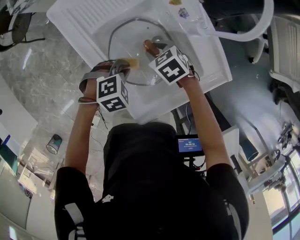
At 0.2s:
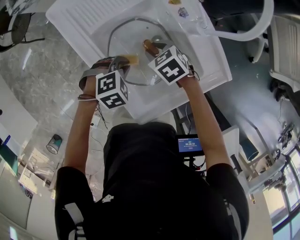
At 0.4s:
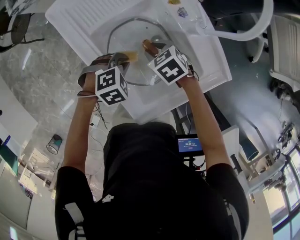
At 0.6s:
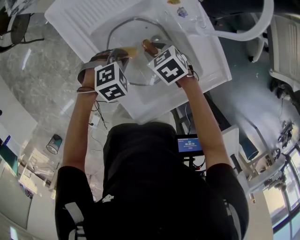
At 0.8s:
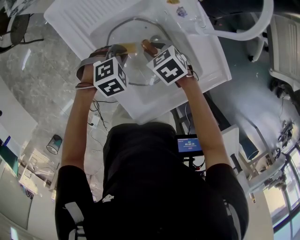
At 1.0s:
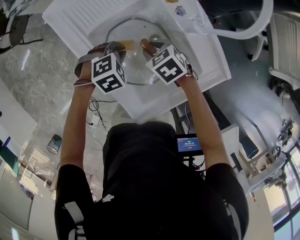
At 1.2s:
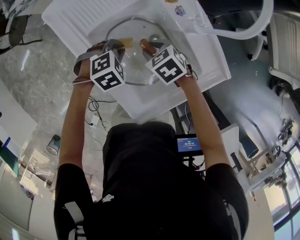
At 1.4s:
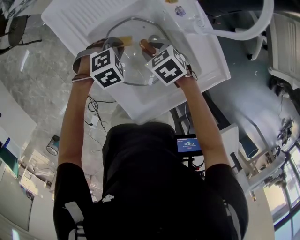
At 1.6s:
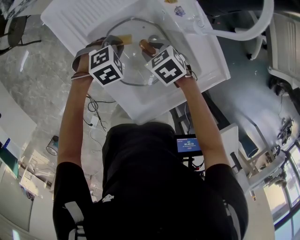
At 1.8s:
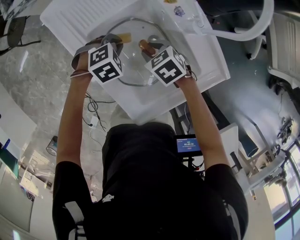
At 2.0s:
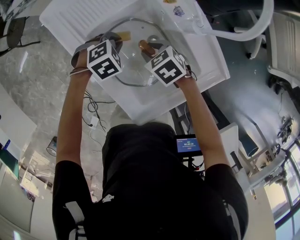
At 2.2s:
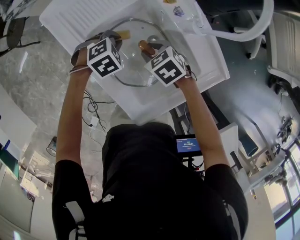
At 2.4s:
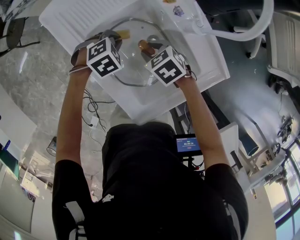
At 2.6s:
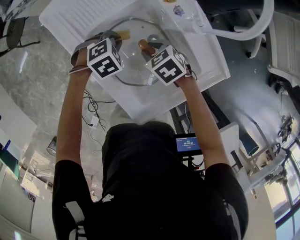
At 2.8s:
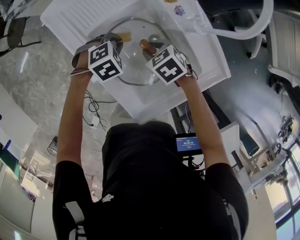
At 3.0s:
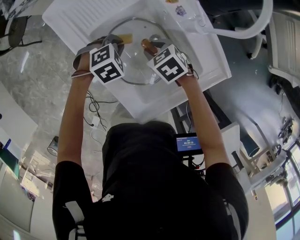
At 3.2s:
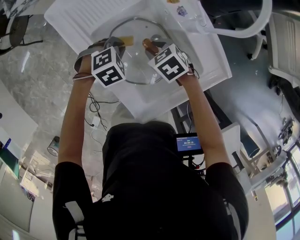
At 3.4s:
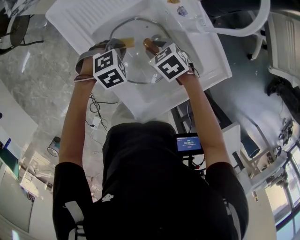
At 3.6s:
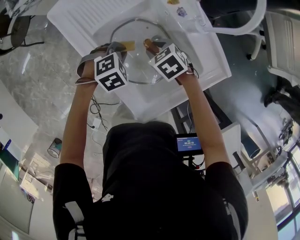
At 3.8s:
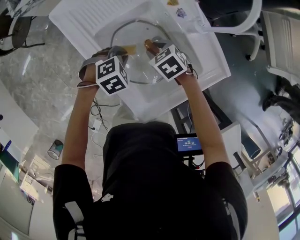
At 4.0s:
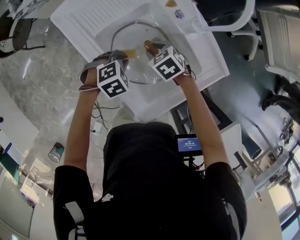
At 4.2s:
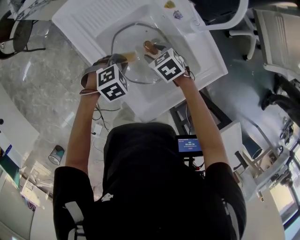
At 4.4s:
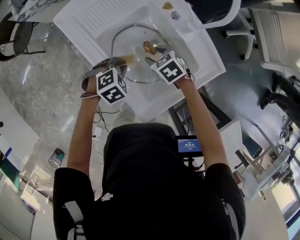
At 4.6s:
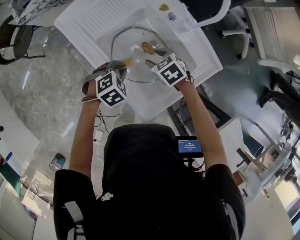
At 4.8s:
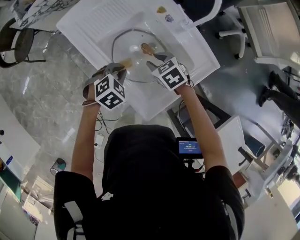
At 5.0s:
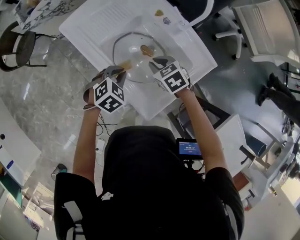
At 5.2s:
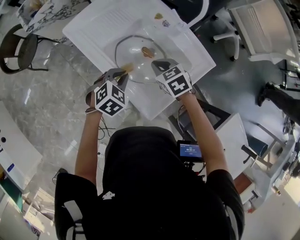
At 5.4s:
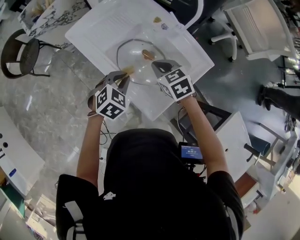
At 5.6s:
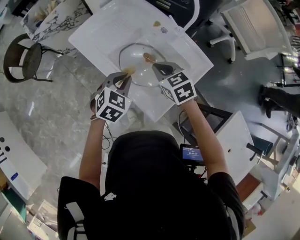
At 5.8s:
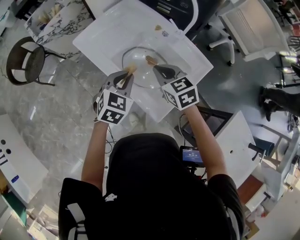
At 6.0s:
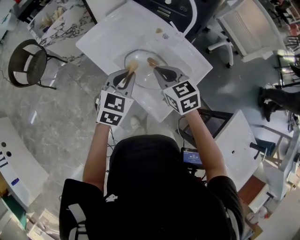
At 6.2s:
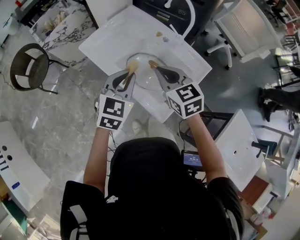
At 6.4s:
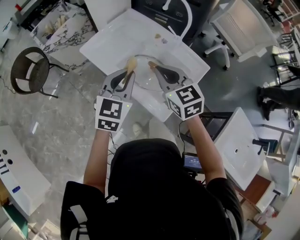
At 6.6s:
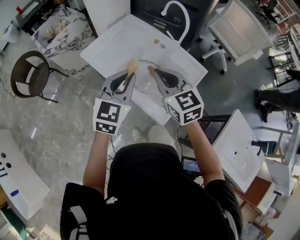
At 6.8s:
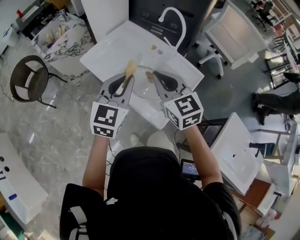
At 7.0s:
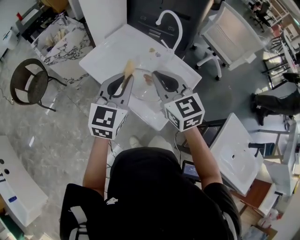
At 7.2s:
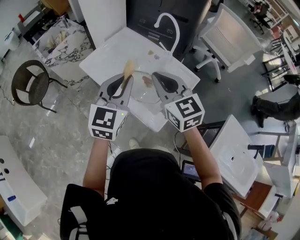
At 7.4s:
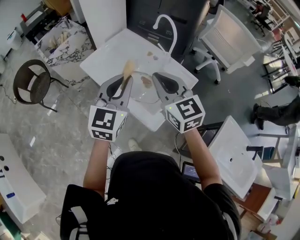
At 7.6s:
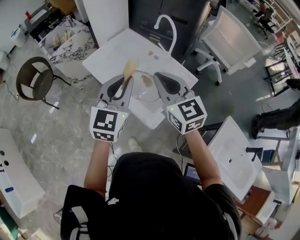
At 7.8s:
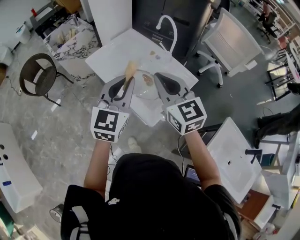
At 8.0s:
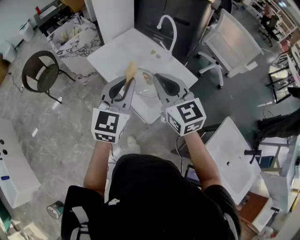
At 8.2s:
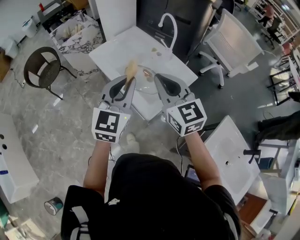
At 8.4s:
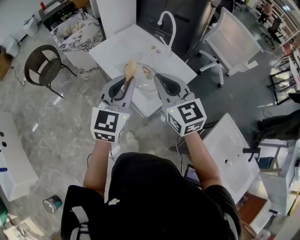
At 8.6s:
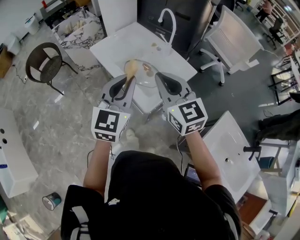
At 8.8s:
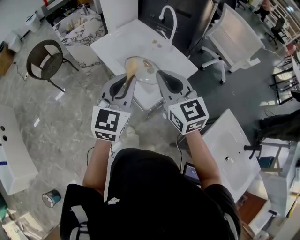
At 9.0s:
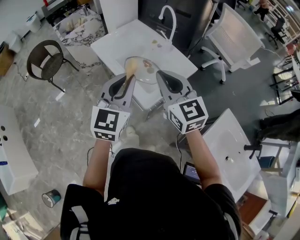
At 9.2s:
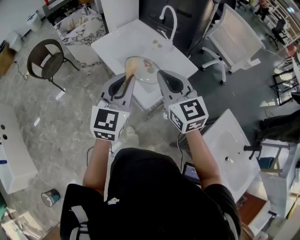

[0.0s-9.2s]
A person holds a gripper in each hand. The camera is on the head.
0.0s to 1.6s: The left gripper shifts by some 10 cm.
1.6s to 3.0s: The grippers move only a little.
3.0s to 4.6s: The left gripper shifts some 10 cm backward.
4.6s to 6.2s: The grippers both shift upward by some 25 cm. The right gripper angles its fingers upward, by roughly 30 degrees, and closes up, while the left gripper tilts its fingers about 40 degrees upward.
6.2s to 7.6s: Both grippers move upward and backward, roughly 15 cm. The left gripper turns by some 20 degrees.
7.6s to 9.2s: The grippers both shift backward by roughly 15 cm.

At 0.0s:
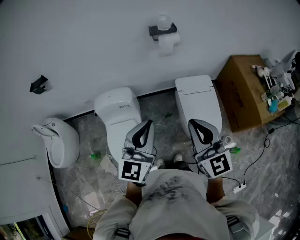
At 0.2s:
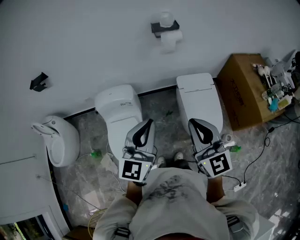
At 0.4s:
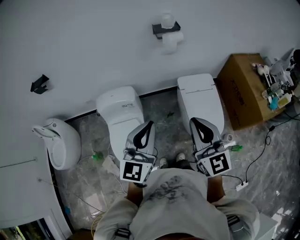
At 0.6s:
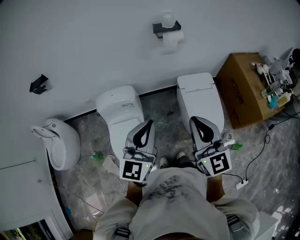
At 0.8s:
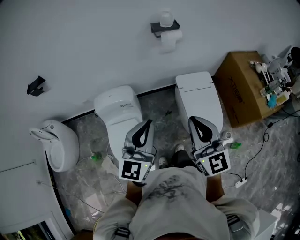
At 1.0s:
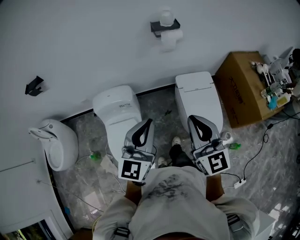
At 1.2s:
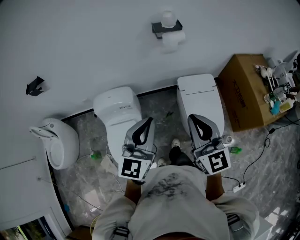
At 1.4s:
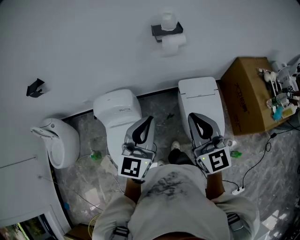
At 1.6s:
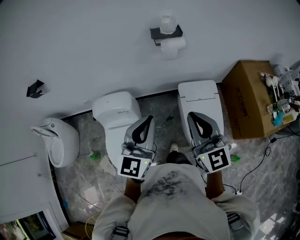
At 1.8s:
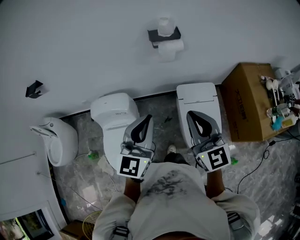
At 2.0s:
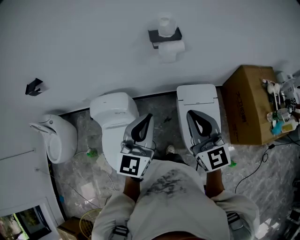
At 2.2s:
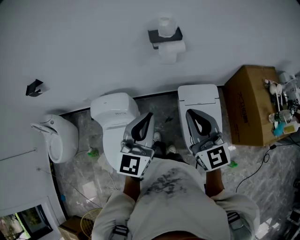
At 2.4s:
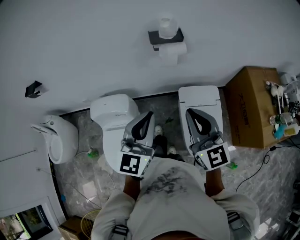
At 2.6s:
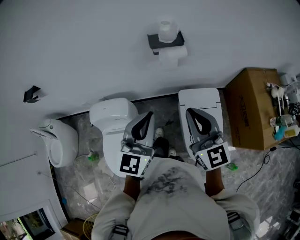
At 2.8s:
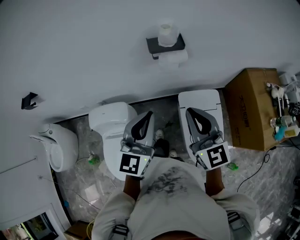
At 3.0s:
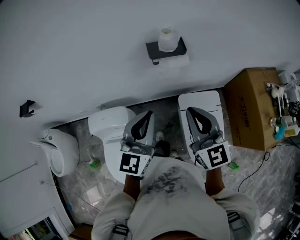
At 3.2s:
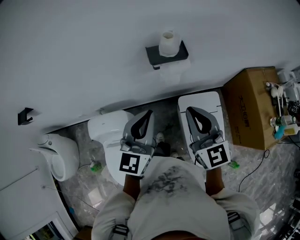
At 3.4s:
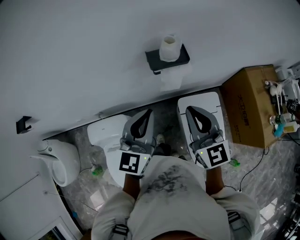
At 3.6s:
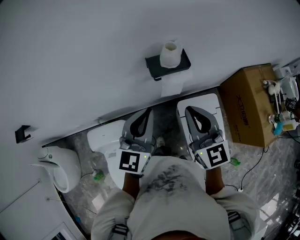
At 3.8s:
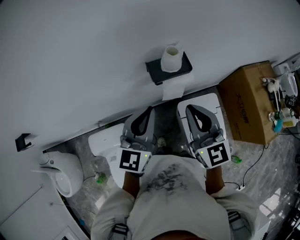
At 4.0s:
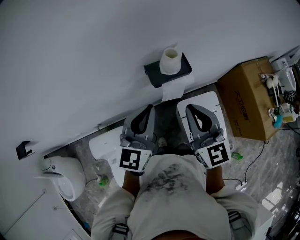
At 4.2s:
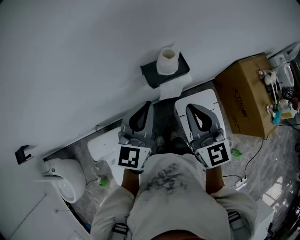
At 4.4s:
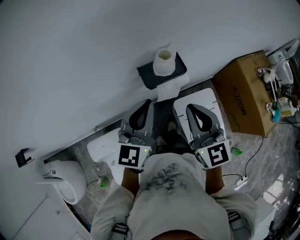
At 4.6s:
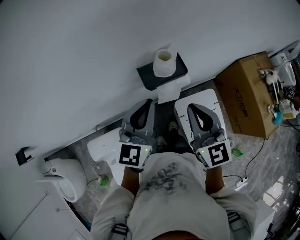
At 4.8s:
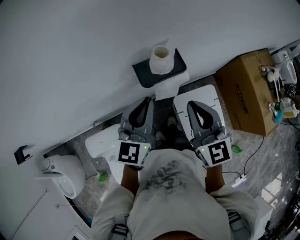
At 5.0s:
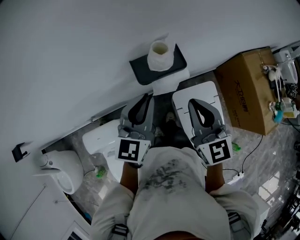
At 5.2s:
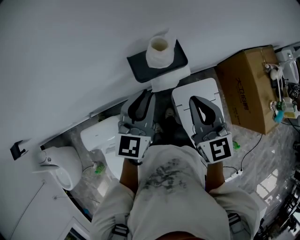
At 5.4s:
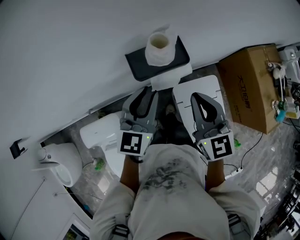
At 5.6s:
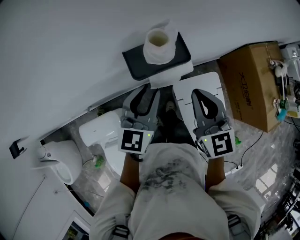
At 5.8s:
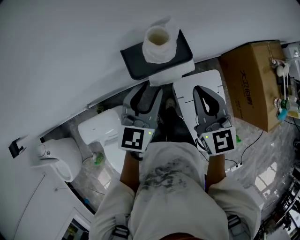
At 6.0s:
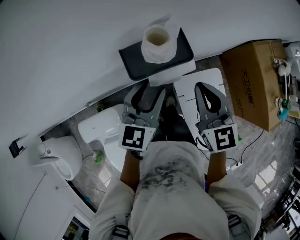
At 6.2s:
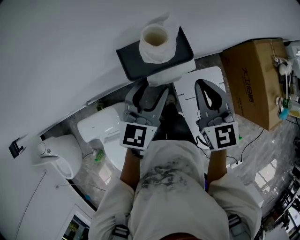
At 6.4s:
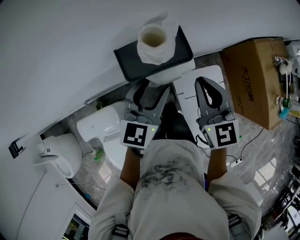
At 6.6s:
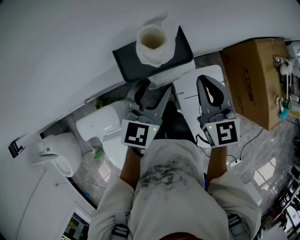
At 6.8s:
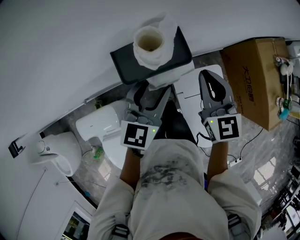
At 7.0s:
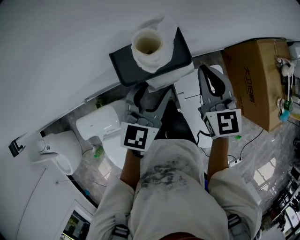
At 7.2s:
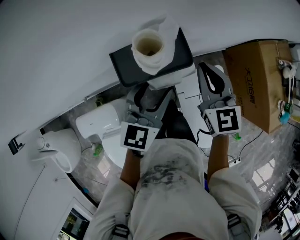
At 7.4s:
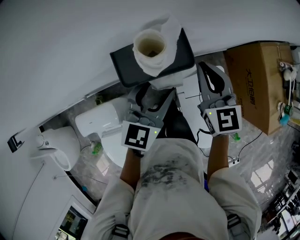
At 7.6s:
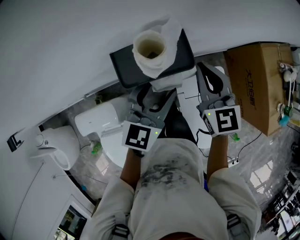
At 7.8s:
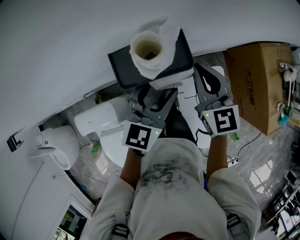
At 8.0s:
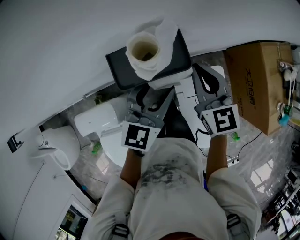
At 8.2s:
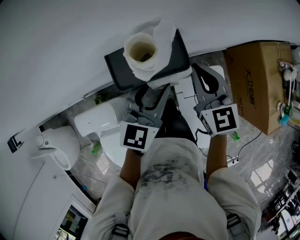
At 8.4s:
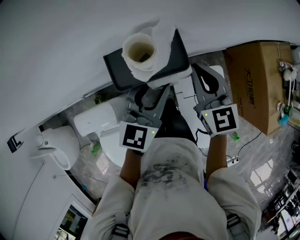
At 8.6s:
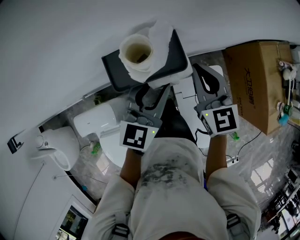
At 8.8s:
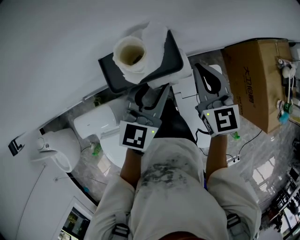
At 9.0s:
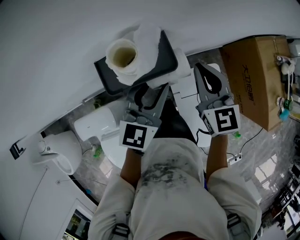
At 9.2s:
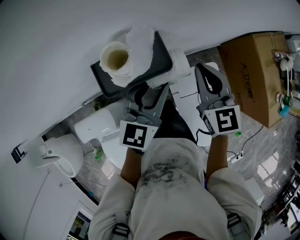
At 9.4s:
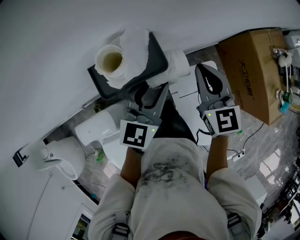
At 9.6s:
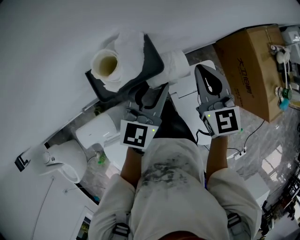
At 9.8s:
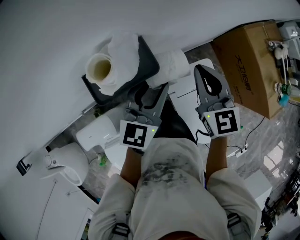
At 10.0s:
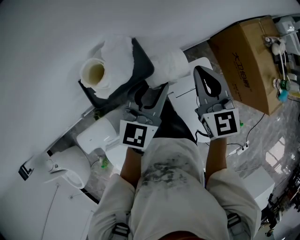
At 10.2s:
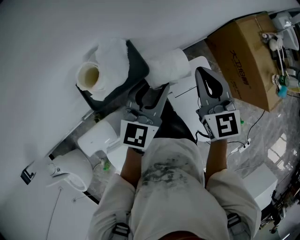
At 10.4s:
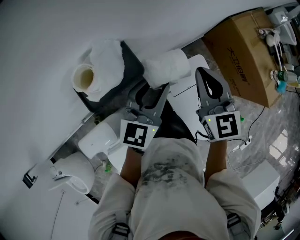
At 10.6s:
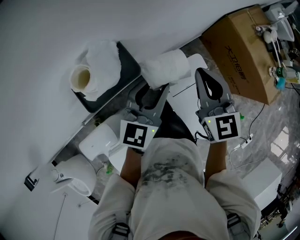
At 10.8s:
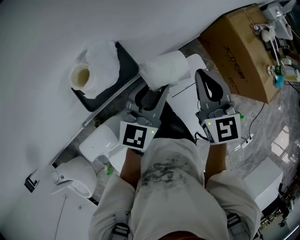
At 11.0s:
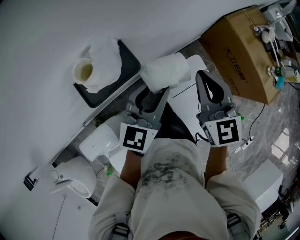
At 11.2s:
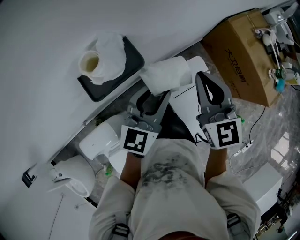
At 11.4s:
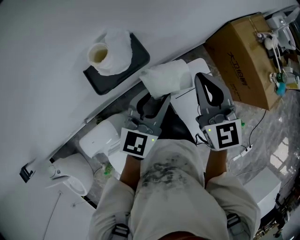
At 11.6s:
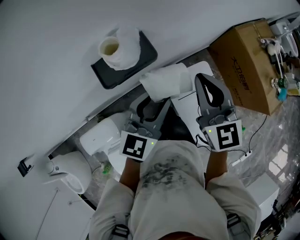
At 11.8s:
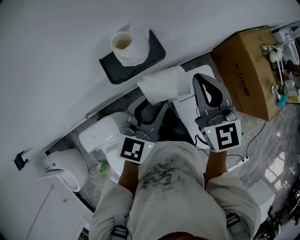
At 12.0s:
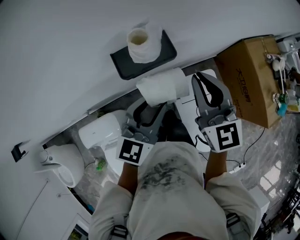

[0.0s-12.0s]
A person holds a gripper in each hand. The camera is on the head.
0.0s to 1.6s: Both grippers travel together forward, roughly 15 cm.
1.6s to 3.0s: The two grippers go about 20 cm forward.
3.0s to 4.4s: Both grippers travel together forward, some 15 cm.
4.4s to 6.0s: The right gripper goes about 15 cm downward and forward. Meanwhile the left gripper moves downward, some 15 cm, and opens.
6.0s to 7.6s: The right gripper heads forward, covering about 10 cm.
7.6s to 9.0s: The left gripper closes.
9.0s to 10.4s: Both grippers travel together to the right, about 10 cm.
10.4s to 12.0s: The right gripper shifts some 15 cm to the left, upward and backward. Meanwhile the left gripper heads backward and to the left, covering approximately 15 cm.

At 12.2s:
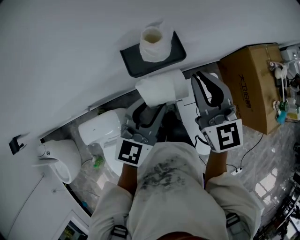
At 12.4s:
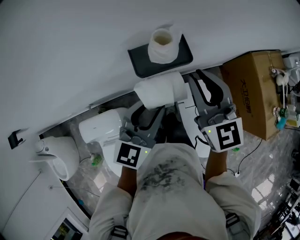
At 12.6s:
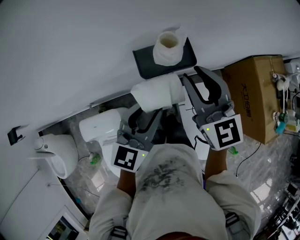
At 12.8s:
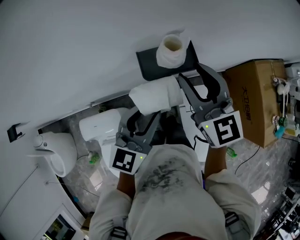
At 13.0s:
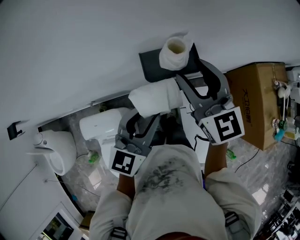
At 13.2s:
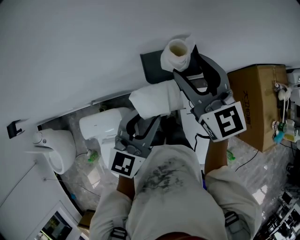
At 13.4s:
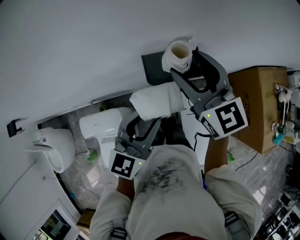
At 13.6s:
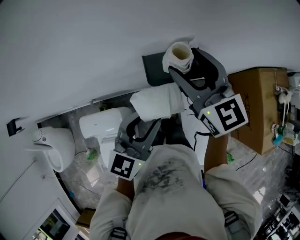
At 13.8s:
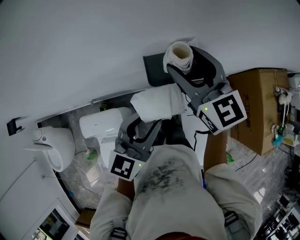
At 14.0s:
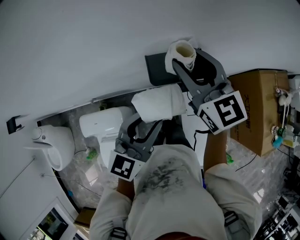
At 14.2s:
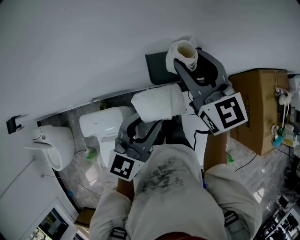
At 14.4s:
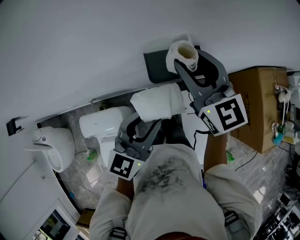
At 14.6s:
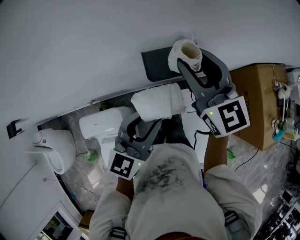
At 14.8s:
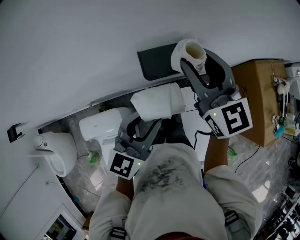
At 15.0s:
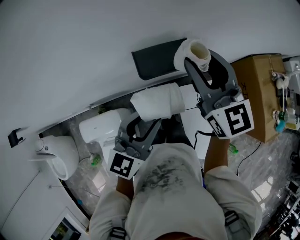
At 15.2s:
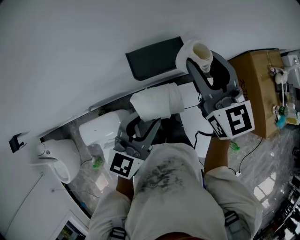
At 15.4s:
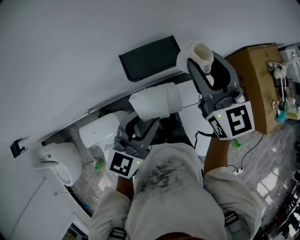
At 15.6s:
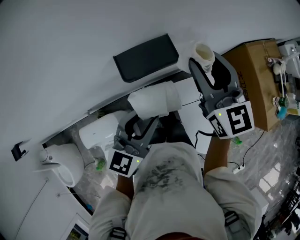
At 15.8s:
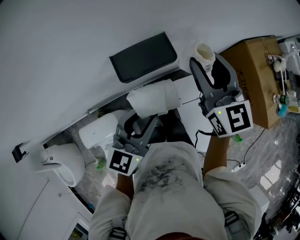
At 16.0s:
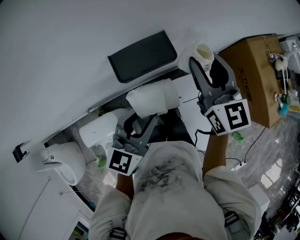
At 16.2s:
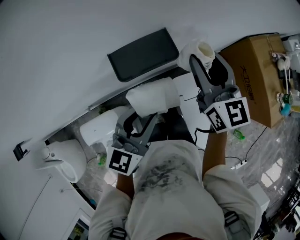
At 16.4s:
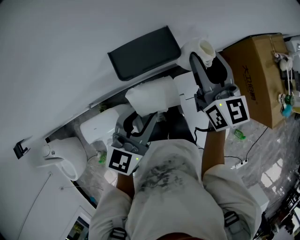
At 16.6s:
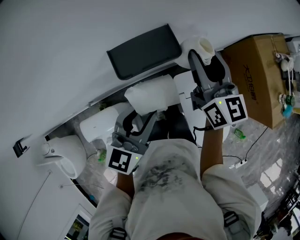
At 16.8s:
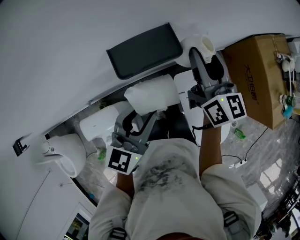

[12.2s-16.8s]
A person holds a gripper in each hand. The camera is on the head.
12.2s to 13.8s: The right gripper goes approximately 15 cm to the left and forward, and opens up. The left gripper moves to the left, some 5 cm.
13.8s to 15.2s: The right gripper moves to the right, roughly 10 cm, and closes up.
15.2s to 16.8s: The right gripper goes some 10 cm downward and to the right, and changes its angle by approximately 30 degrees.
